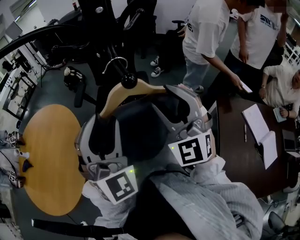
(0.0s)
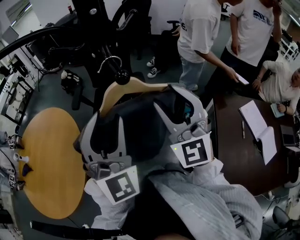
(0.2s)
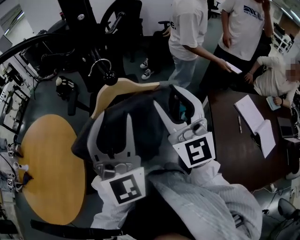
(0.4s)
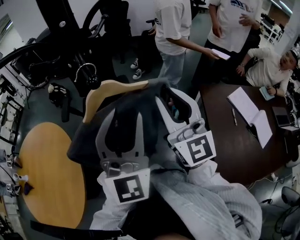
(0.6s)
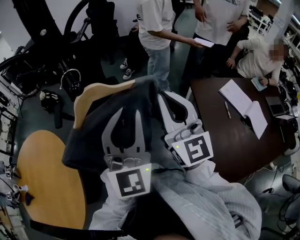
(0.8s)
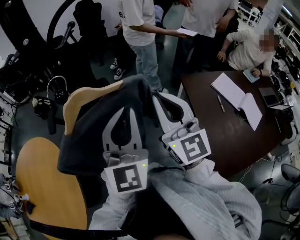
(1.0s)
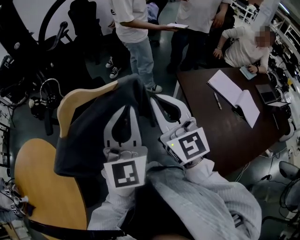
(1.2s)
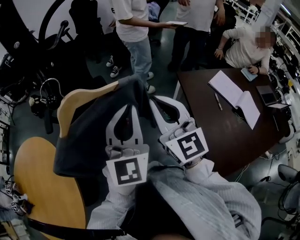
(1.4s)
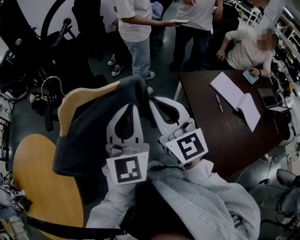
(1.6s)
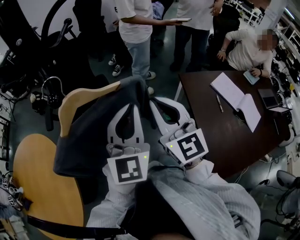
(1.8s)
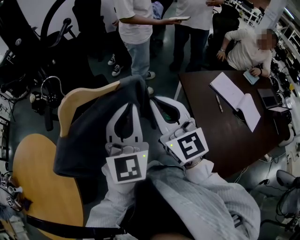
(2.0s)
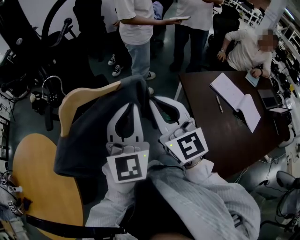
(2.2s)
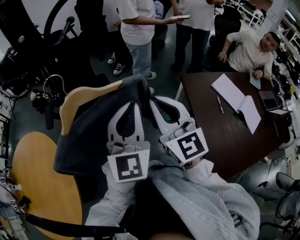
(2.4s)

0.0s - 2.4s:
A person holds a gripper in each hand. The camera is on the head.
0.0s - 1.2s: The right gripper moves roughly 15 cm, rotates about 40 degrees, and closes up; the left gripper changes place by roughly 20 cm, rotates around the line of its fingers by approximately 40 degrees, counterclockwise from behind, and closes.
1.2s - 2.4s: There are only small adjustments of the grippers.

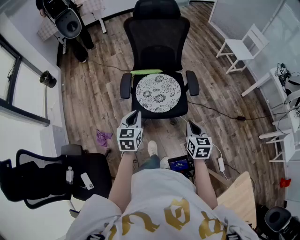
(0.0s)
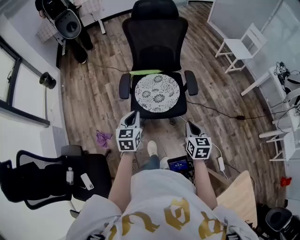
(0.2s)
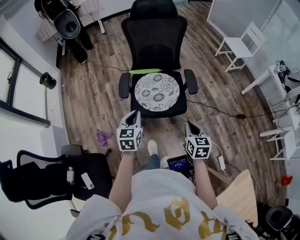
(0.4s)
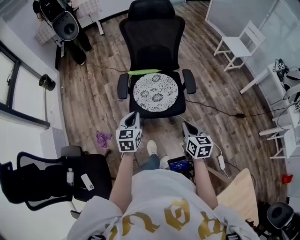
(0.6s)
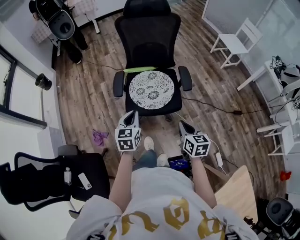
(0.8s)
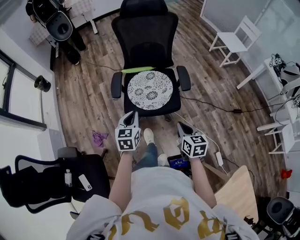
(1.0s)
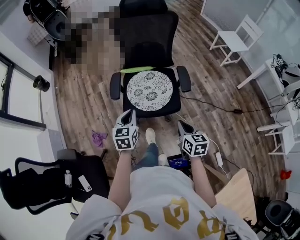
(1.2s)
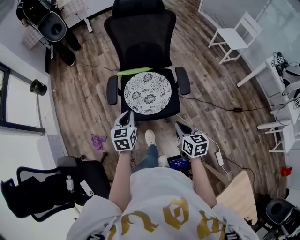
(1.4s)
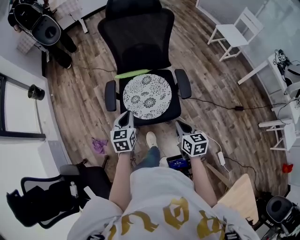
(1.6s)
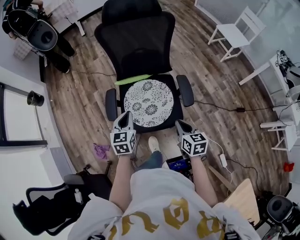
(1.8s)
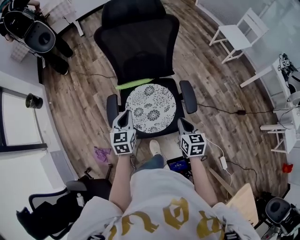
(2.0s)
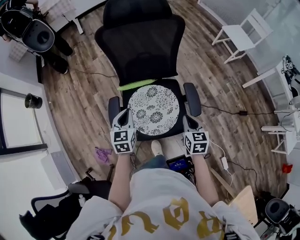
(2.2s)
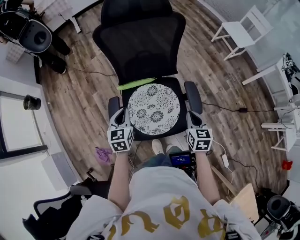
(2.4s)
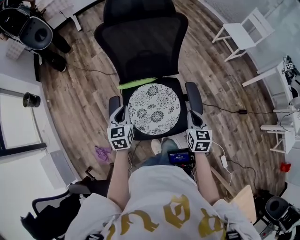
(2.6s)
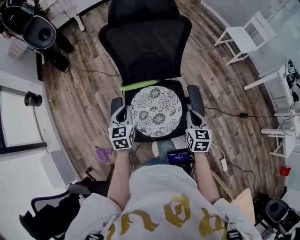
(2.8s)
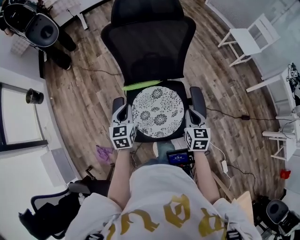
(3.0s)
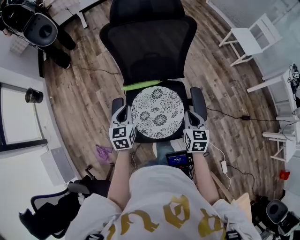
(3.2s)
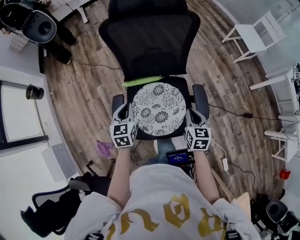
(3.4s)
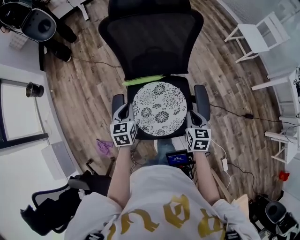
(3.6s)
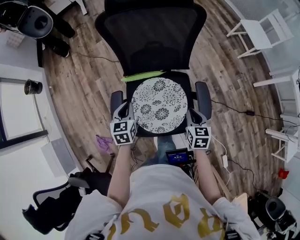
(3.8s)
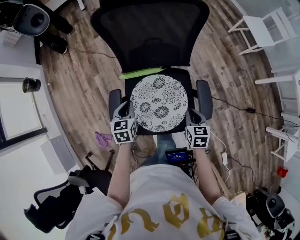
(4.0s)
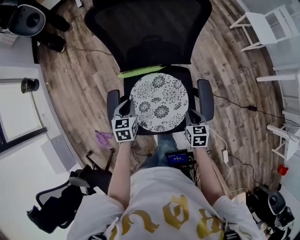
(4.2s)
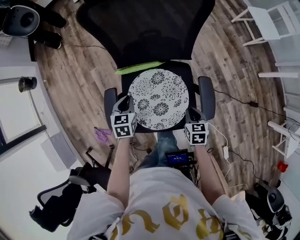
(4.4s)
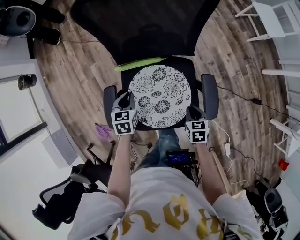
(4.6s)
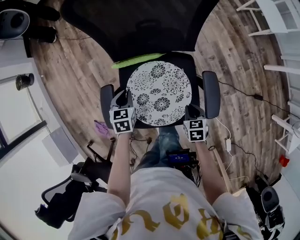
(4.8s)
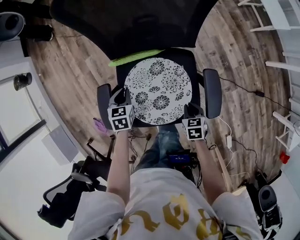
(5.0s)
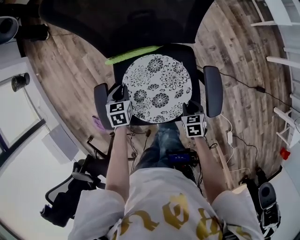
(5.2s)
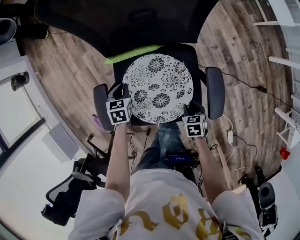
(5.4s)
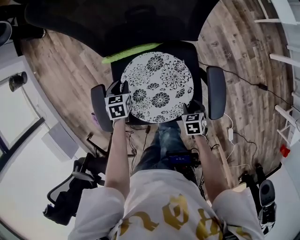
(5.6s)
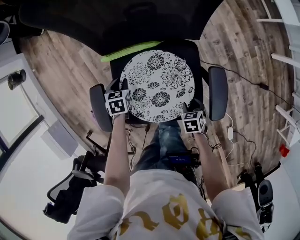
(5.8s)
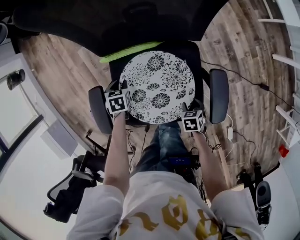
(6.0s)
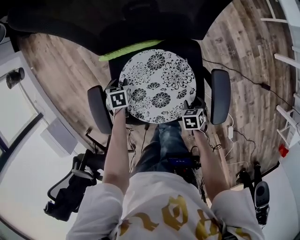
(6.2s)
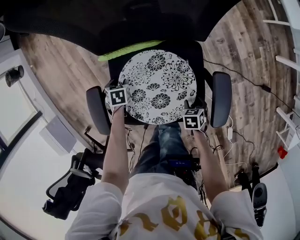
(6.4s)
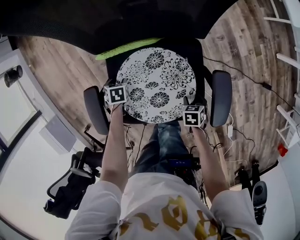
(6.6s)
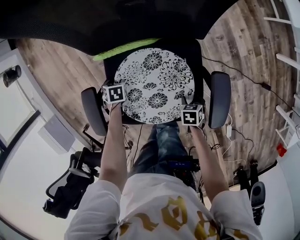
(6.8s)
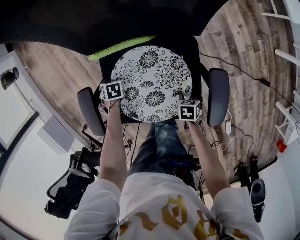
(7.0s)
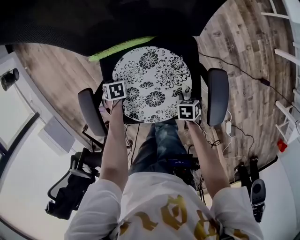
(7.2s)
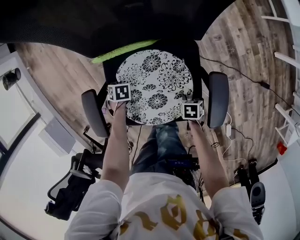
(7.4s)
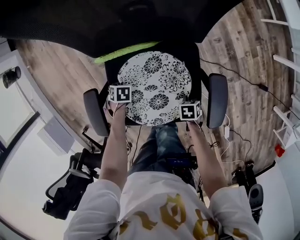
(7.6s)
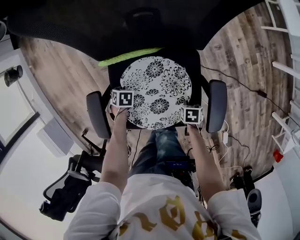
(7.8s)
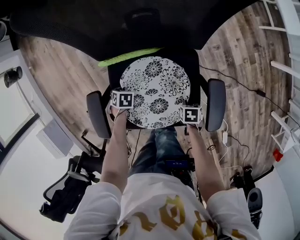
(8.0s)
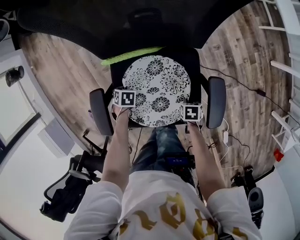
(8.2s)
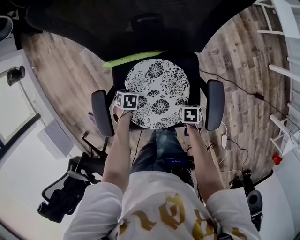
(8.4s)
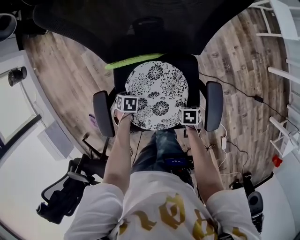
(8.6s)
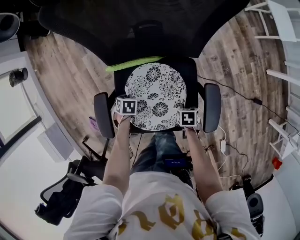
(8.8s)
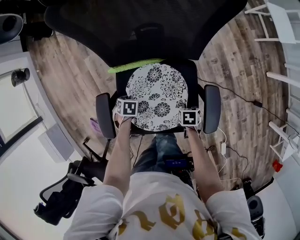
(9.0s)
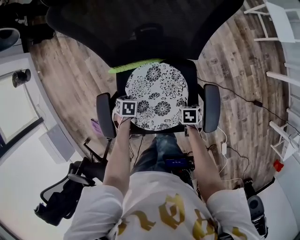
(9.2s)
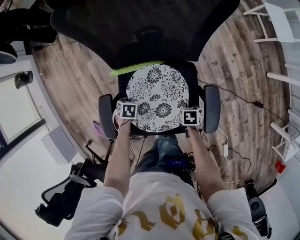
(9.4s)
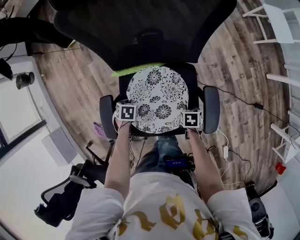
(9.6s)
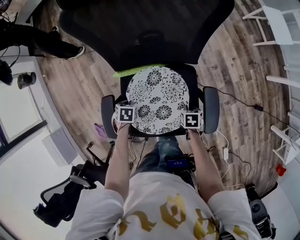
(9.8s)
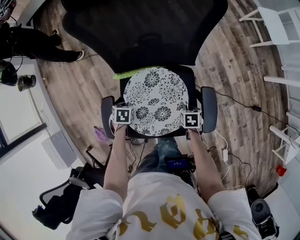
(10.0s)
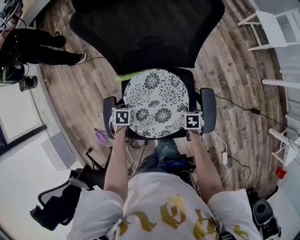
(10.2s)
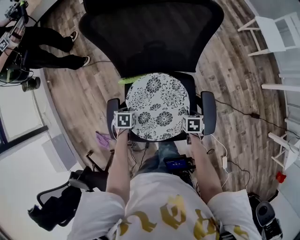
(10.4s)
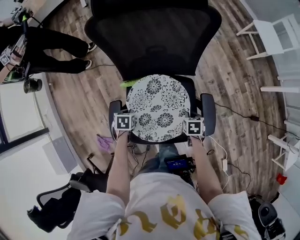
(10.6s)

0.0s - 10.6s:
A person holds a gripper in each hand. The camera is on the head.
0.0s - 1.6s: The left gripper heads forward and downward, covering some 15 cm; the right gripper is displaced forward by about 10 cm.
1.6s - 3.0s: The two grippers go about 25 cm forward.
3.0s - 4.6s: Both grippers travel together downward, approximately 20 cm. The left gripper rotates approximately 20 degrees, while the right gripper turns by some 30 degrees.
4.6s - 6.0s: The two grippers go about 15 cm downward. The right gripper changes its angle by roughly 20 degrees, and opens up. The left gripper swivels roughly 20 degrees, and opens up.
6.0s - 7.6s: The right gripper closes, while the left gripper goes some 5 cm downward, and rotates about 20 degrees.
7.6s - 9.0s: The two grippers go approximately 5 cm upward.
9.0s - 10.6s: Both grippers travel together upward, about 10 cm.

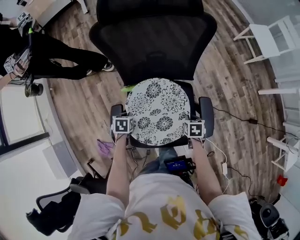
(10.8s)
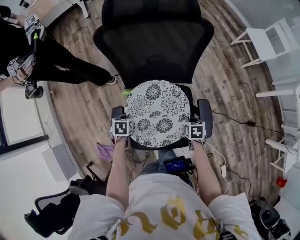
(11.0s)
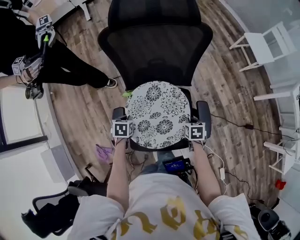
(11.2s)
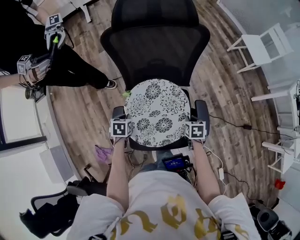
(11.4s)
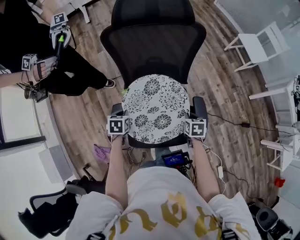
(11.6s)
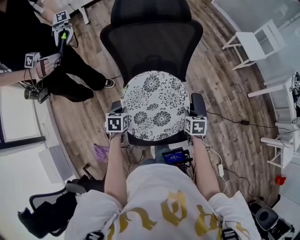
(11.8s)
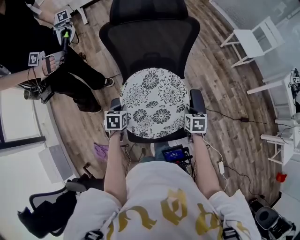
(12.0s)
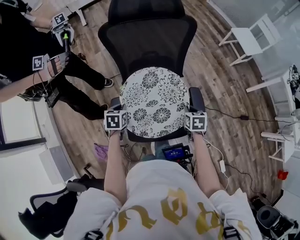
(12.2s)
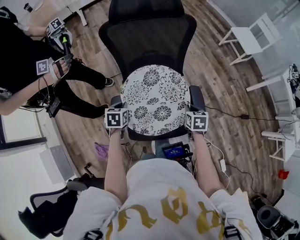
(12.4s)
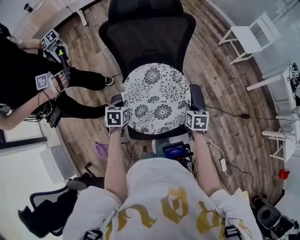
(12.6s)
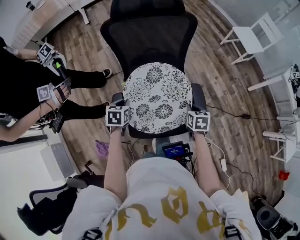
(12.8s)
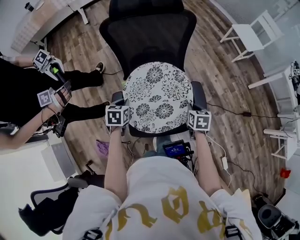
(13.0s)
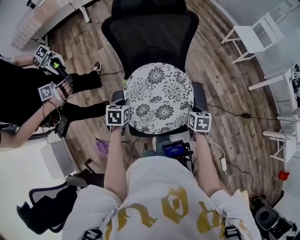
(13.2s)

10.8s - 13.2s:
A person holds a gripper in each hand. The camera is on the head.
10.8s - 12.0s: The two grippers go some 10 cm upward.
12.0s - 13.2s: The grippers stay close to where they were, moving slightly.

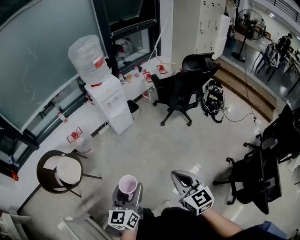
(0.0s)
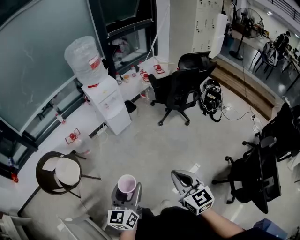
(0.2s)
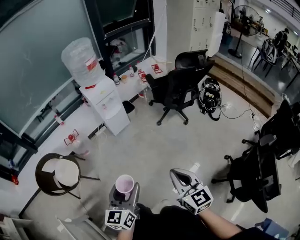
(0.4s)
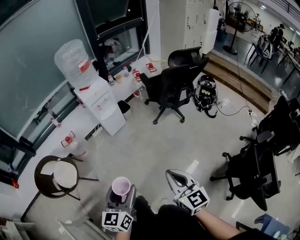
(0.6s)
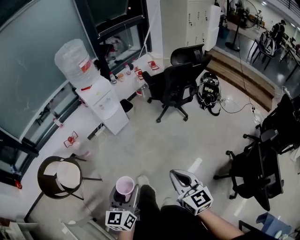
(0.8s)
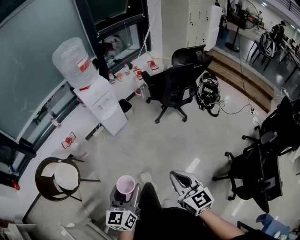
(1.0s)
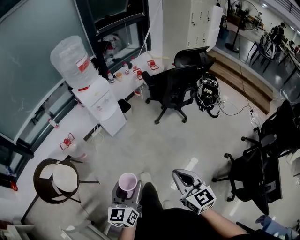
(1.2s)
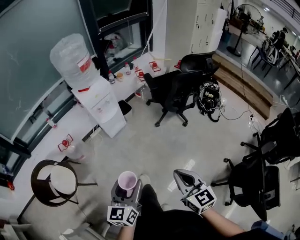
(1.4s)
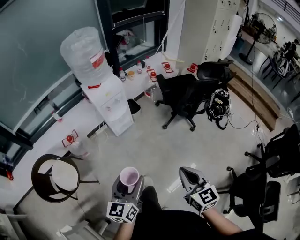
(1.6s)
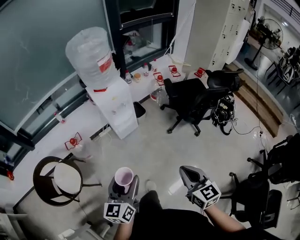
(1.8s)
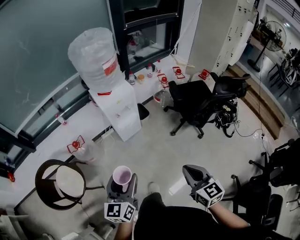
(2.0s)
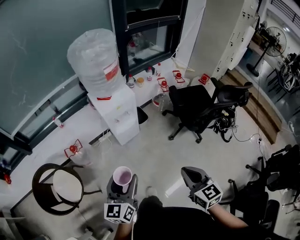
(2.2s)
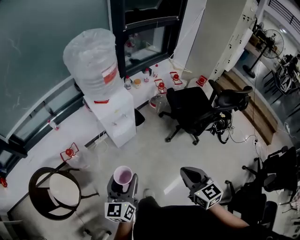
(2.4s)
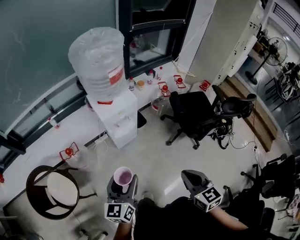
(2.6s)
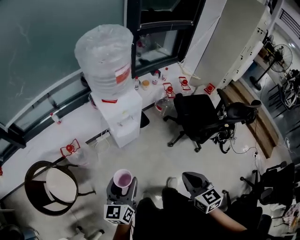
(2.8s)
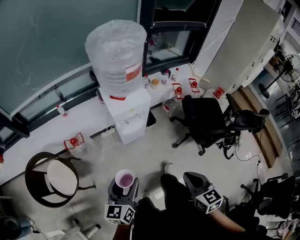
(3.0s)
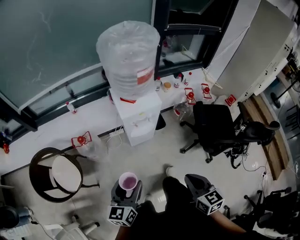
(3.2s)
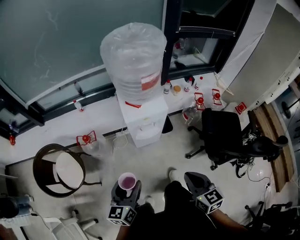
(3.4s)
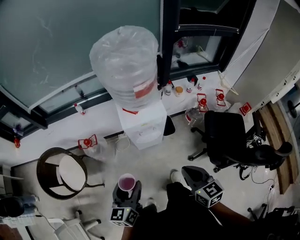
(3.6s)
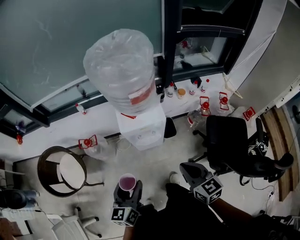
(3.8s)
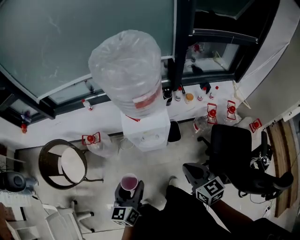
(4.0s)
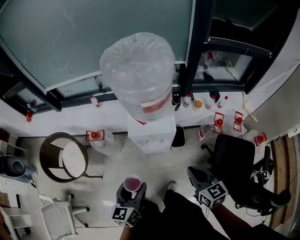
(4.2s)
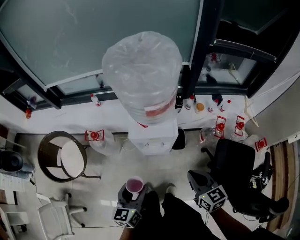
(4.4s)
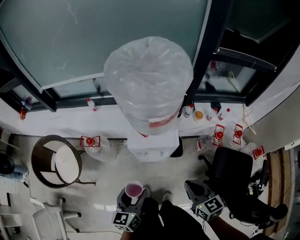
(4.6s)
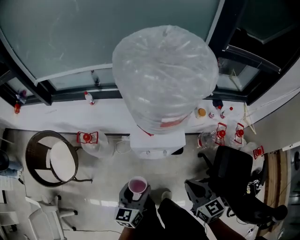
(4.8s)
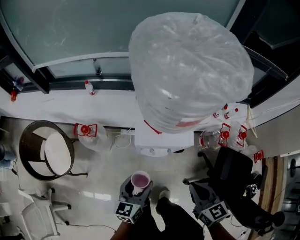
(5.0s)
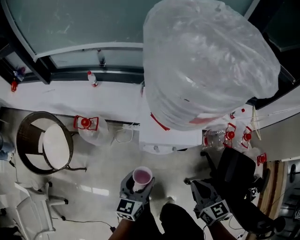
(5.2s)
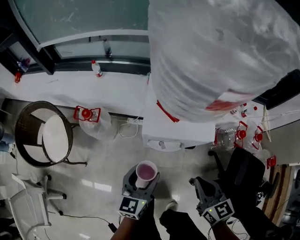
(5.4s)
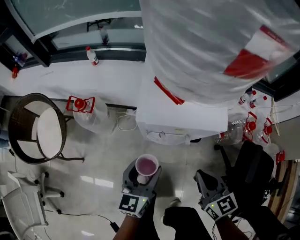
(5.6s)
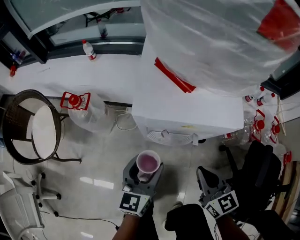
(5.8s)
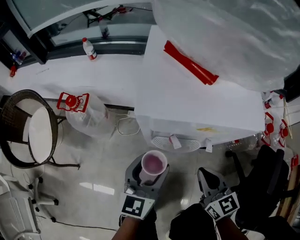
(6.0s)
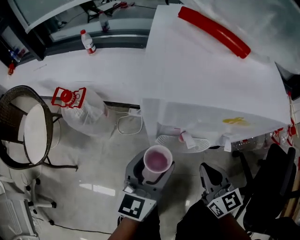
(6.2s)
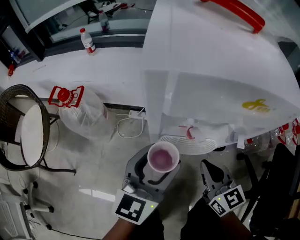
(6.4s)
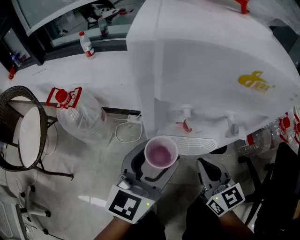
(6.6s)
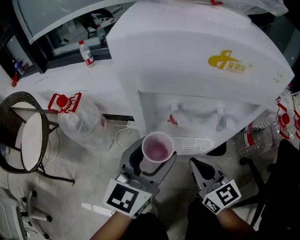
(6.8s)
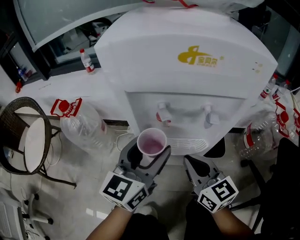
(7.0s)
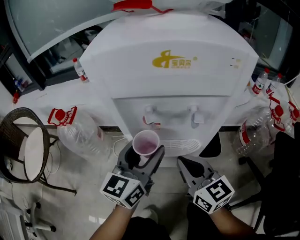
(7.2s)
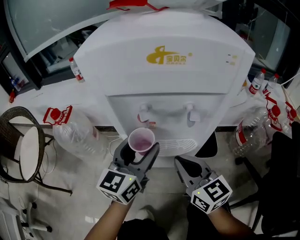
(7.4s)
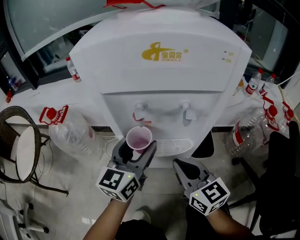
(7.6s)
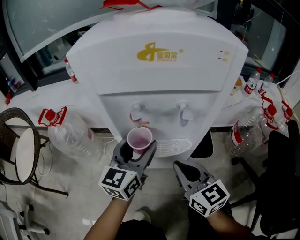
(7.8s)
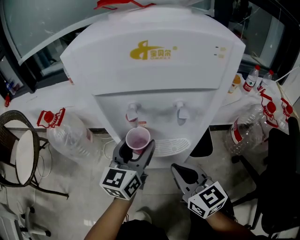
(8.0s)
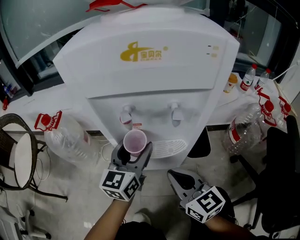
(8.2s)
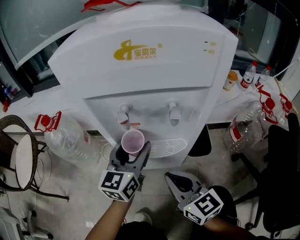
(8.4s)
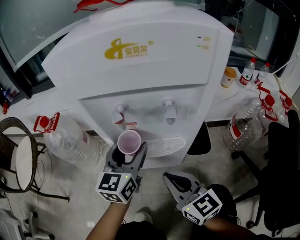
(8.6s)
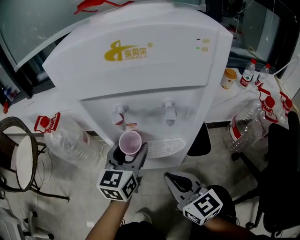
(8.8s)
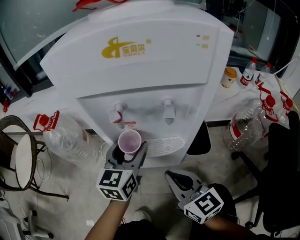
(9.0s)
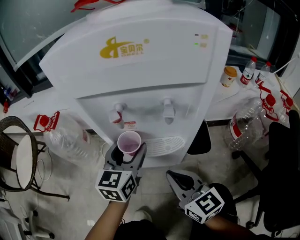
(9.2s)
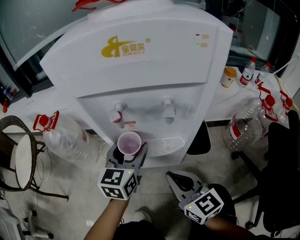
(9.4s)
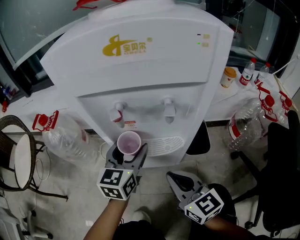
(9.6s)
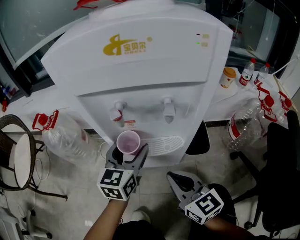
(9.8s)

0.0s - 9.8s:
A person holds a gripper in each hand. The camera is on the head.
0.0s - 1.4s: Both grippers travel together forward, some 15 cm.
1.4s - 2.8s: The left gripper travels forward and to the left by roughly 35 cm. The right gripper moves forward, about 30 cm.
2.8s - 4.2s: The right gripper changes place by roughly 35 cm, and turns by roughly 30 degrees; the left gripper shifts by roughly 20 cm, and turns by some 30 degrees.
4.2s - 5.6s: The left gripper moves downward and forward, about 35 cm. Meanwhile the right gripper travels downward by about 30 cm.
5.6s - 7.0s: The left gripper is displaced downward and forward by approximately 20 cm. Meanwhile the right gripper moves downward, roughly 25 cm.
7.0s - 8.4s: The right gripper moves approximately 5 cm. The left gripper is displaced downward by roughly 5 cm.
8.4s - 9.8s: The grippers stay close to where they were, moving slightly.
